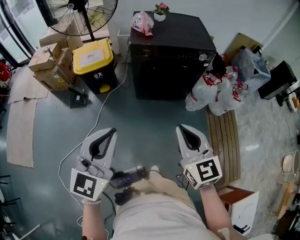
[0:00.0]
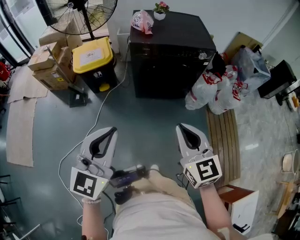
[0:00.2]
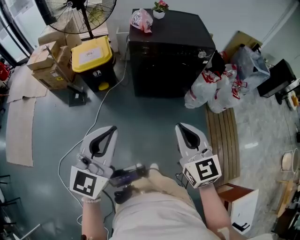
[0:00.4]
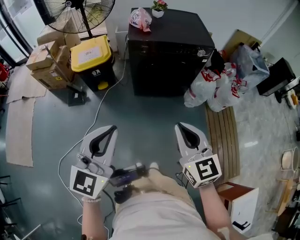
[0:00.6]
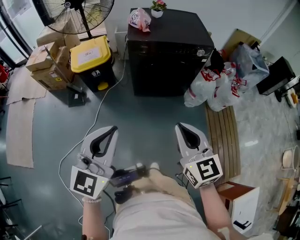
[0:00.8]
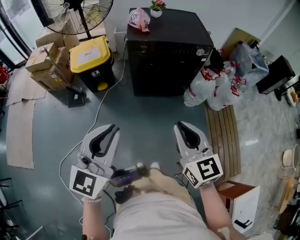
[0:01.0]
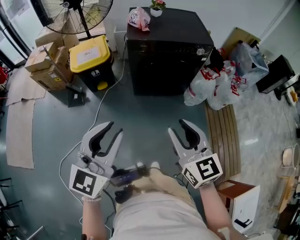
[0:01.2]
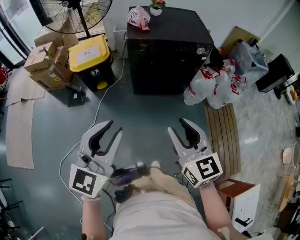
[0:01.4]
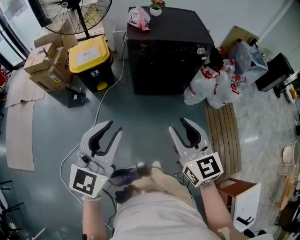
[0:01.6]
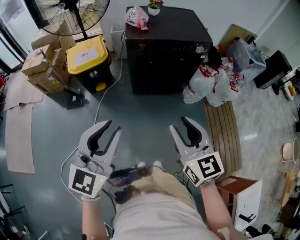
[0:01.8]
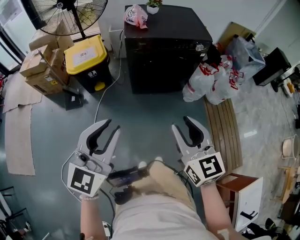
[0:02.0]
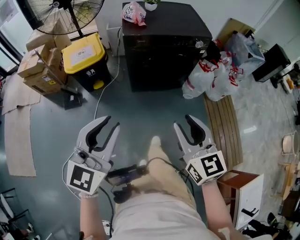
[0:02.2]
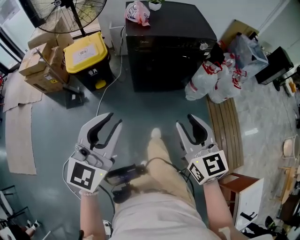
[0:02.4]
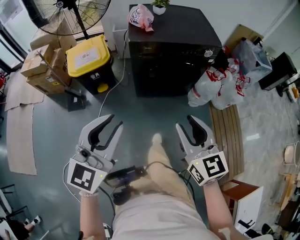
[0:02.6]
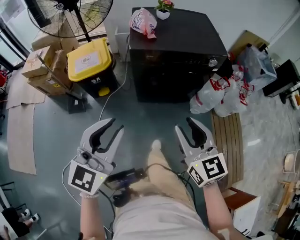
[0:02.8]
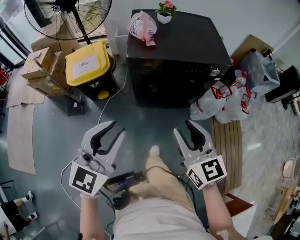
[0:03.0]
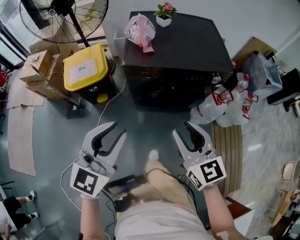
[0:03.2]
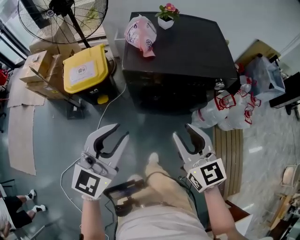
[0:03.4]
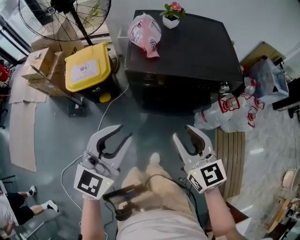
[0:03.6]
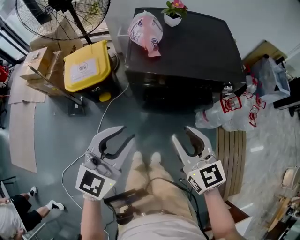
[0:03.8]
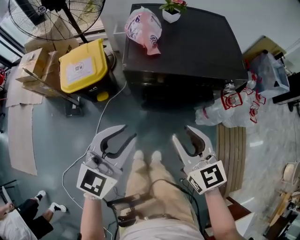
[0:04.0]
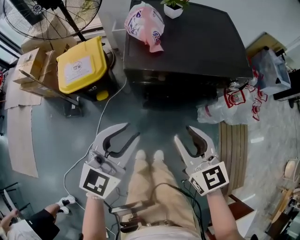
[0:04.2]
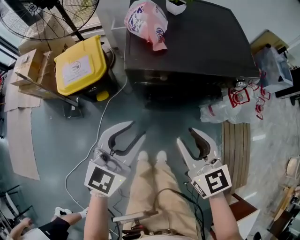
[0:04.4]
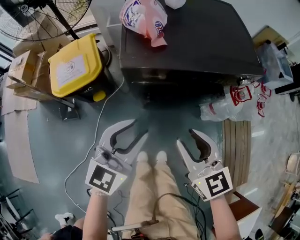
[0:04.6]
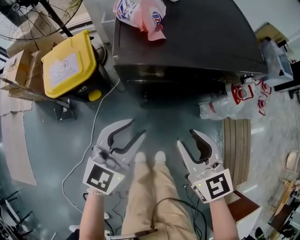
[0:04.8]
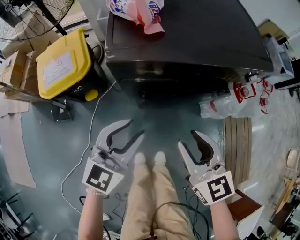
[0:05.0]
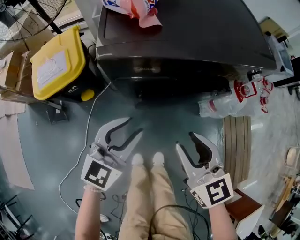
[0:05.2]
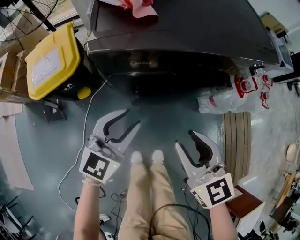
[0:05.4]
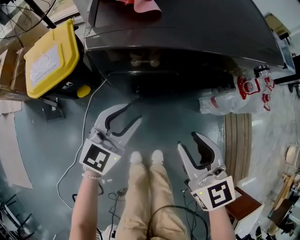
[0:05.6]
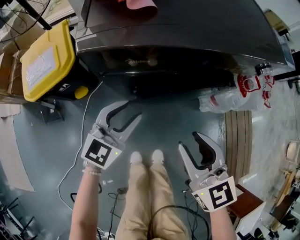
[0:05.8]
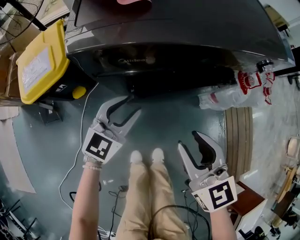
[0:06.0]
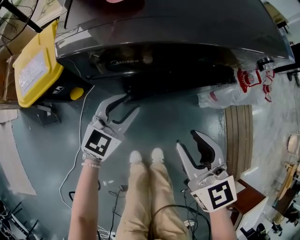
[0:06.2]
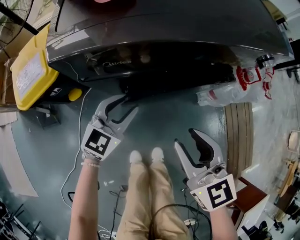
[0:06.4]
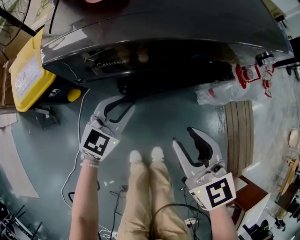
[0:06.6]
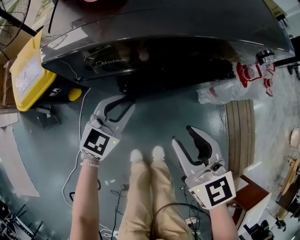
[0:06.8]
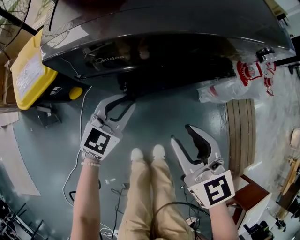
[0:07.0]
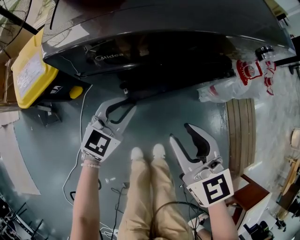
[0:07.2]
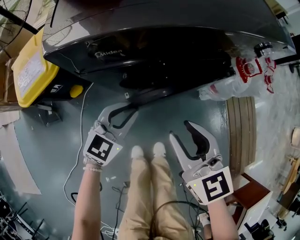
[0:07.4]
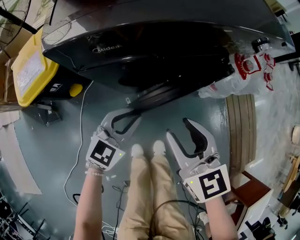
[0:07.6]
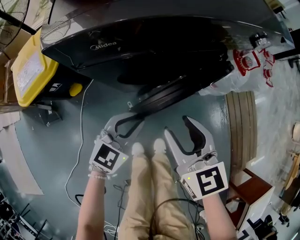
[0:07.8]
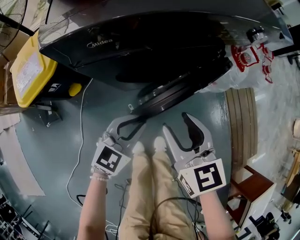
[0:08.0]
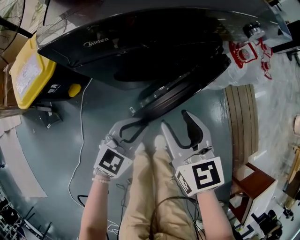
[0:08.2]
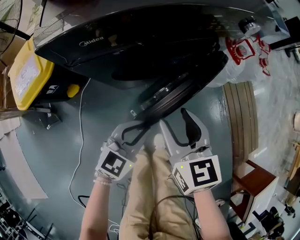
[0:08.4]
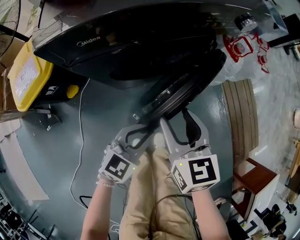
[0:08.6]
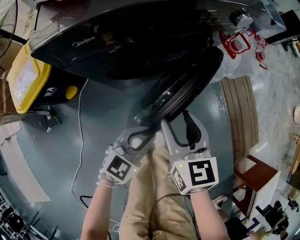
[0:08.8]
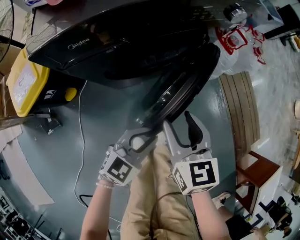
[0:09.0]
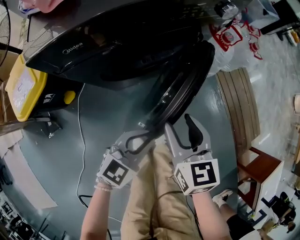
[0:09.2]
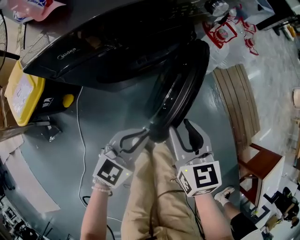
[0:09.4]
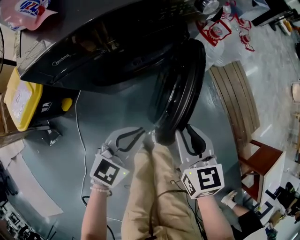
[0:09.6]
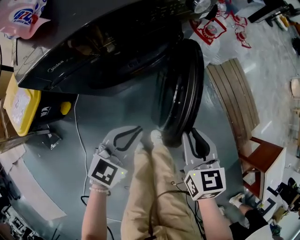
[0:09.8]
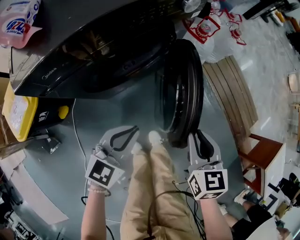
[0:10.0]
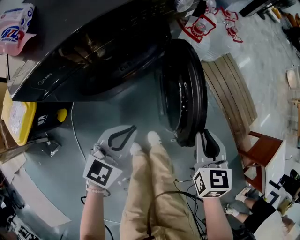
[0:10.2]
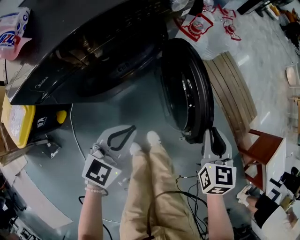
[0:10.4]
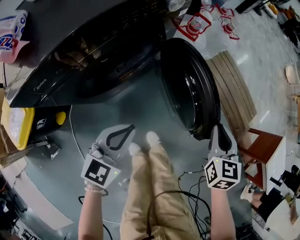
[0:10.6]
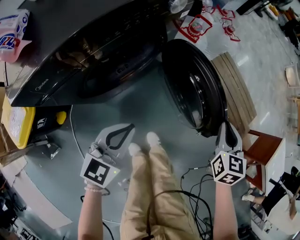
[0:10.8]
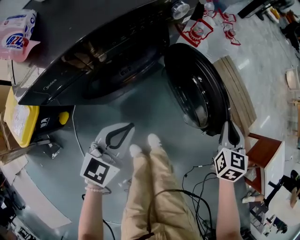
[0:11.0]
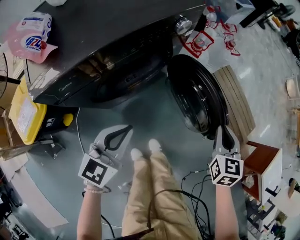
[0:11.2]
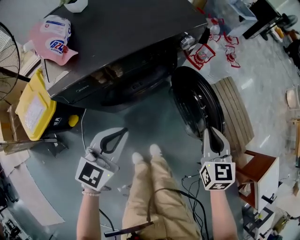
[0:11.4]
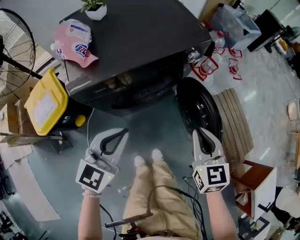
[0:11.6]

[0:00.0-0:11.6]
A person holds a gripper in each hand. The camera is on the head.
0:00.0 to 0:01.4: The right gripper opens, while the left gripper opens.
0:01.4 to 0:02.8: The grippers both shift forward by roughly 15 cm.
0:02.8 to 0:04.4: Both grippers move forward and downward, some 25 cm.
0:04.4 to 0:05.8: The right gripper moves downward, some 15 cm; the left gripper moves downward and forward, approximately 30 cm.
0:05.8 to 0:07.2: The left gripper goes some 5 cm downward.
0:07.2 to 0:08.8: The right gripper changes place by approximately 5 cm, and rotates roughly 20 degrees. Meanwhile the left gripper is displaced backward and to the right by roughly 20 cm.
0:08.8 to 0:10.2: The left gripper heads upward, covering some 5 cm. The right gripper heads to the right, covering some 20 cm, changes its angle by some 30 degrees, and closes.
0:10.2 to 0:11.6: Both grippers move upward, about 20 cm. The right gripper rotates roughly 20 degrees.

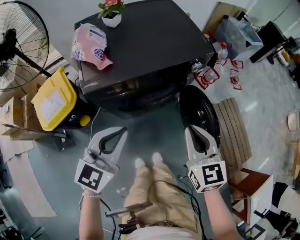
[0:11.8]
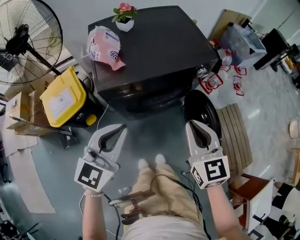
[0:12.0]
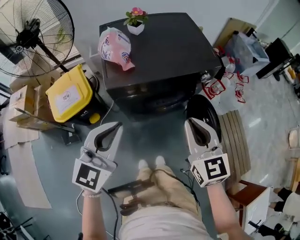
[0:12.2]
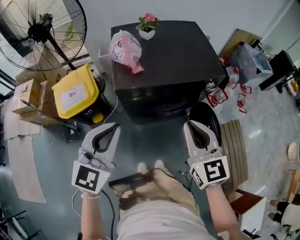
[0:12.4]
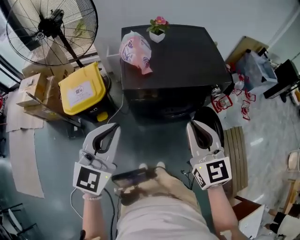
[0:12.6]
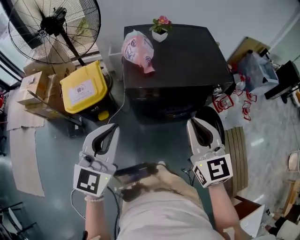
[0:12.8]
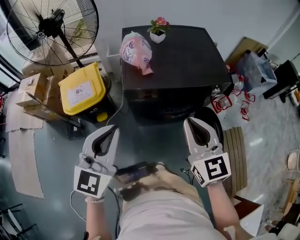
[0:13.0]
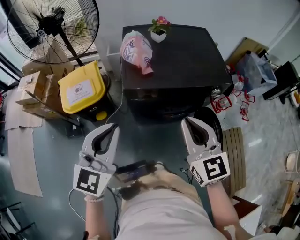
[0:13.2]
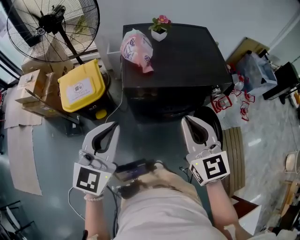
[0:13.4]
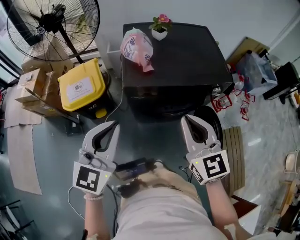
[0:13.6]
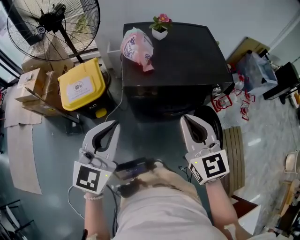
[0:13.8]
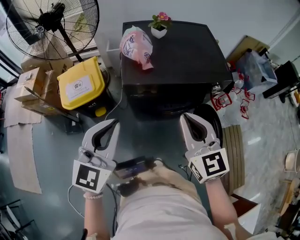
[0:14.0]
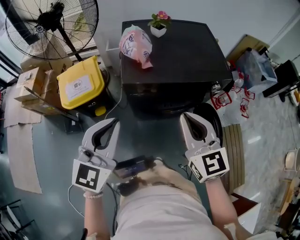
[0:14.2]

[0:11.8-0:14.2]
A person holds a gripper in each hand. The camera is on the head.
0:11.8 to 0:13.0: The left gripper goes about 15 cm upward, to the left and backward, and rotates about 30 degrees, while the right gripper travels upward and to the left by approximately 15 cm, and swivels some 20 degrees.
0:13.0 to 0:14.2: The grippers move only a little.

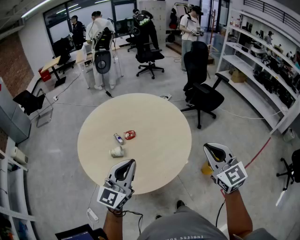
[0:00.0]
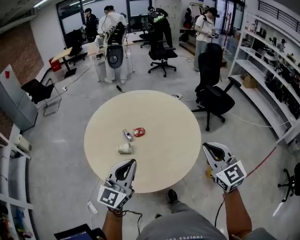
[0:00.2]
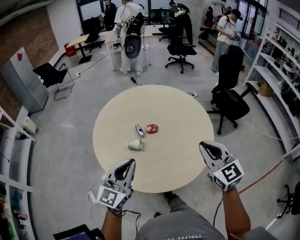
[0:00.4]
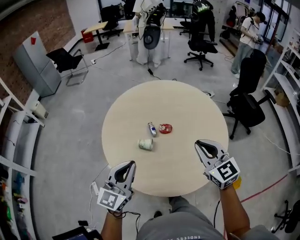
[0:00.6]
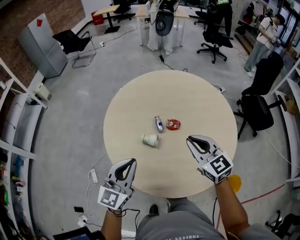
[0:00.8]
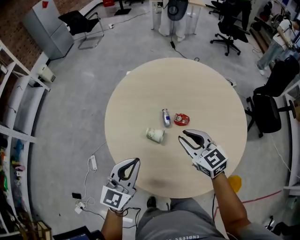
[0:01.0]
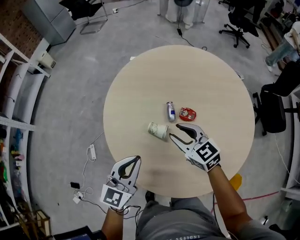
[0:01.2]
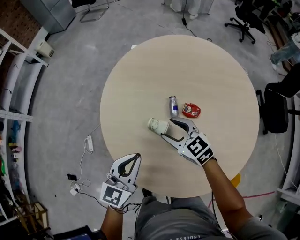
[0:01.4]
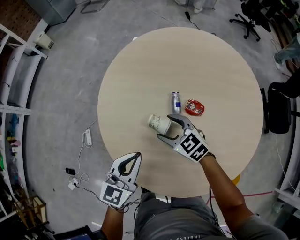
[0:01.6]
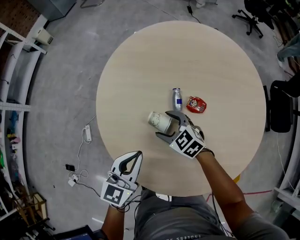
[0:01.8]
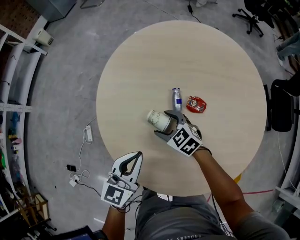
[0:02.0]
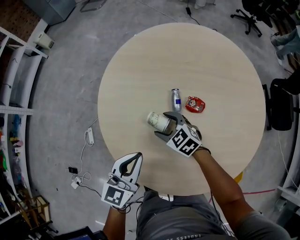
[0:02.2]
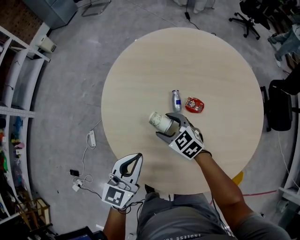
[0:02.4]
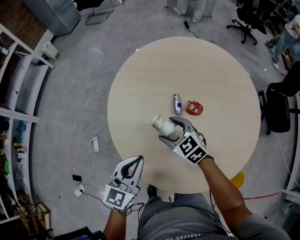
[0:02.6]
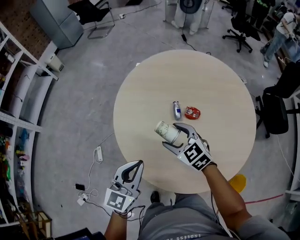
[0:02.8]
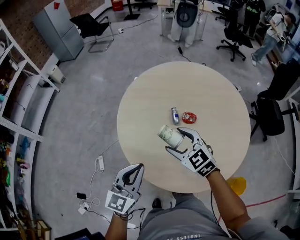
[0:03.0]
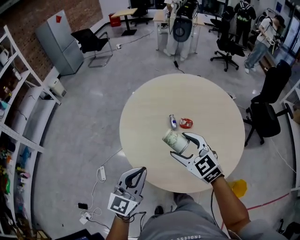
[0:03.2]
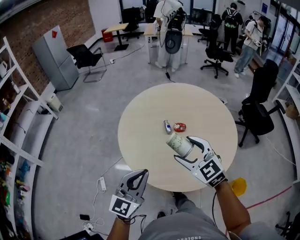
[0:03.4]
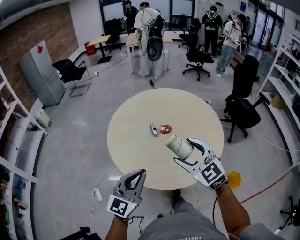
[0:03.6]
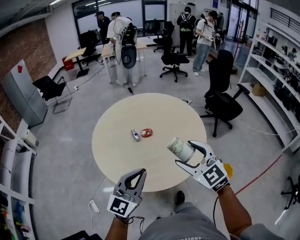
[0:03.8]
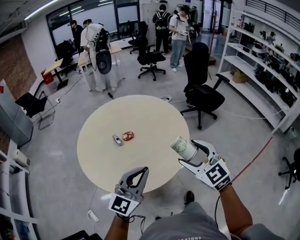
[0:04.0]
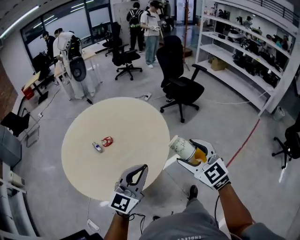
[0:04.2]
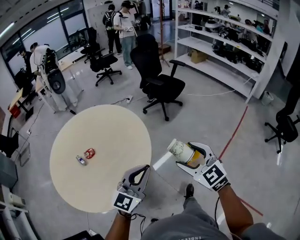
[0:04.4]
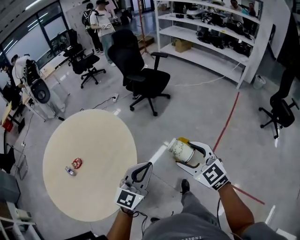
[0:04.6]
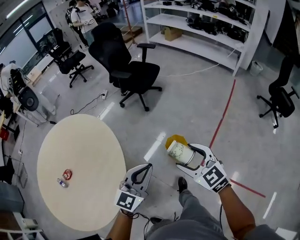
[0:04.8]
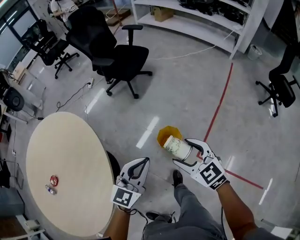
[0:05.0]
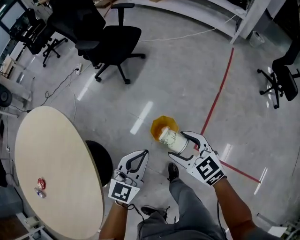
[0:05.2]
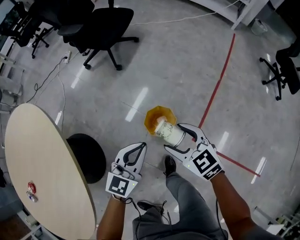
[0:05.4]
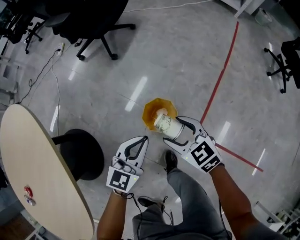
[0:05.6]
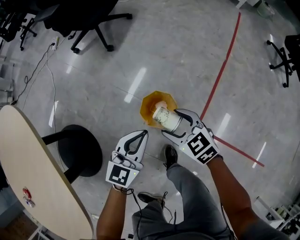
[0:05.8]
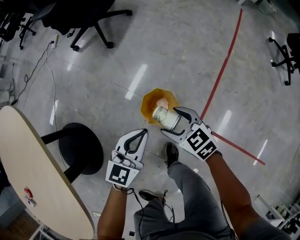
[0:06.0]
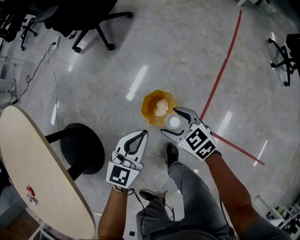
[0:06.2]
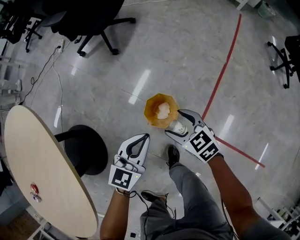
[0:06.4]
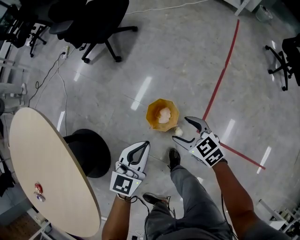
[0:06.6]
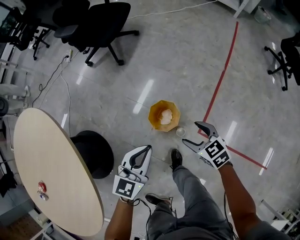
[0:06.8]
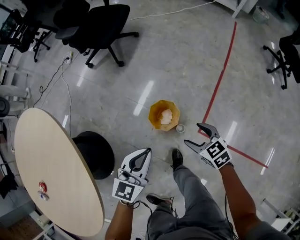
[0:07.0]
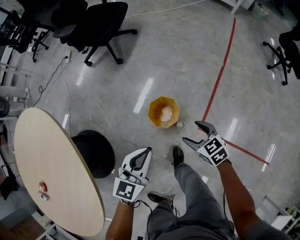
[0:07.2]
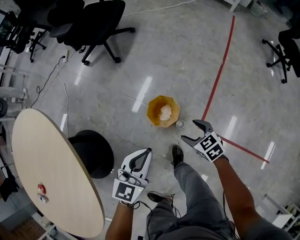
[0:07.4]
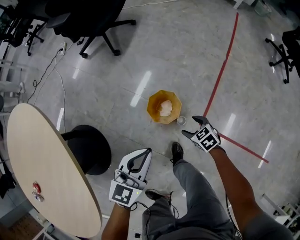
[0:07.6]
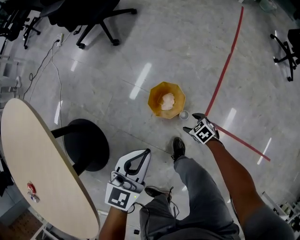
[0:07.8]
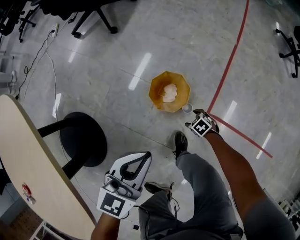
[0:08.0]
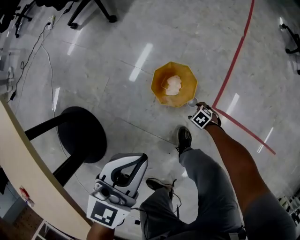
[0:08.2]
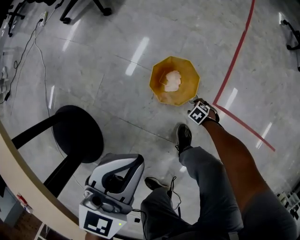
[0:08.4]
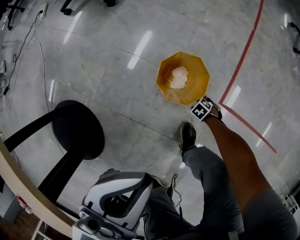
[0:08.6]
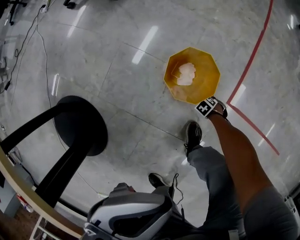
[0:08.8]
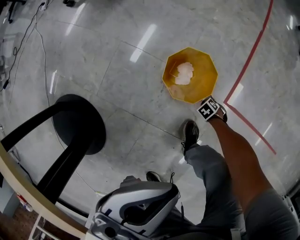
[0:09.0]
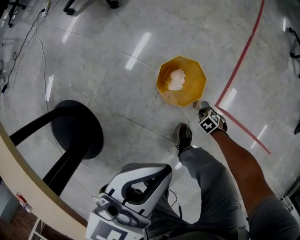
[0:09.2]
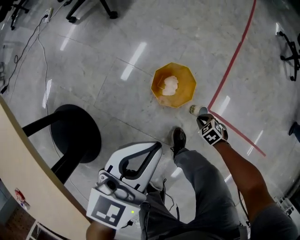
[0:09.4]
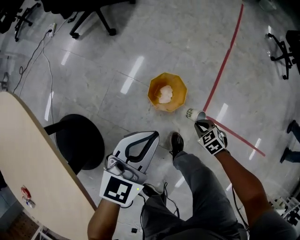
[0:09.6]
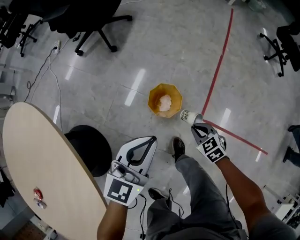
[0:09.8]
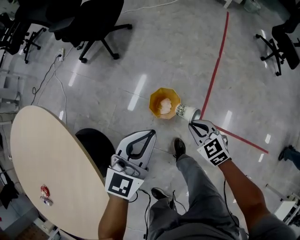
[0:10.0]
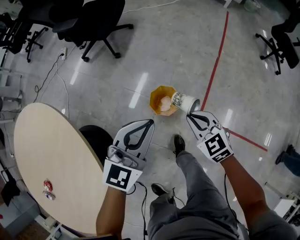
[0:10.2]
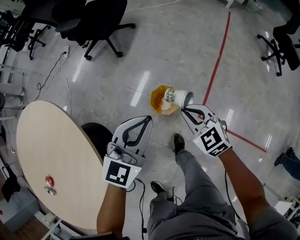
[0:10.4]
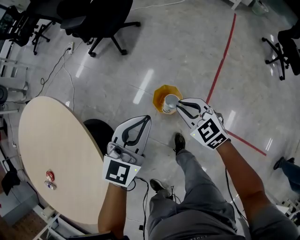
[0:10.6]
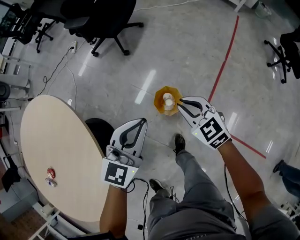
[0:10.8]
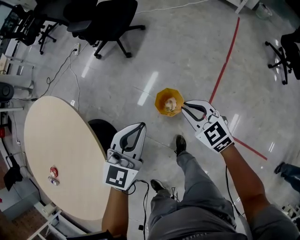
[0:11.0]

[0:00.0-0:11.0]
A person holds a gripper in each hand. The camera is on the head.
0:00.0 to 0:01.6: The left gripper moves approximately 40 cm, and swivels about 40 degrees. The right gripper moves some 70 cm, changes its angle by about 70 degrees, and opens up.
0:01.6 to 0:03.2: The right gripper travels upward and backward by about 30 cm, and swivels some 20 degrees; the left gripper moves upward, backward and to the left, roughly 25 cm.
0:03.2 to 0:04.8: The pair of grippers is taken roughly 80 cm. The left gripper changes its angle by roughly 70 degrees. The right gripper rotates roughly 60 degrees.
0:04.8 to 0:06.2: The two grippers go roughly 50 cm downward and forward. The left gripper turns by roughly 20 degrees. Meanwhile the right gripper rotates roughly 30 degrees.
0:06.2 to 0:07.8: The left gripper is displaced backward and to the left by approximately 10 cm, and travels upward and back again, about 15 cm each way. The right gripper is displaced downward and backward by roughly 25 cm, and changes its angle by approximately 30 degrees.
0:07.8 to 0:09.4: The left gripper moves about 5 cm, while the right gripper moves some 30 cm downward and comes back, and closes its fingers.
0:09.4 to 0:11.0: The left gripper goes about 25 cm upward; the right gripper travels upward by about 60 cm, and points its fingers roughly 40 degrees further upward.
